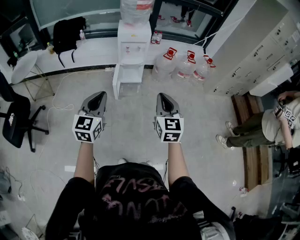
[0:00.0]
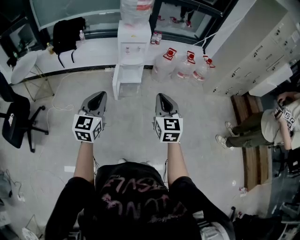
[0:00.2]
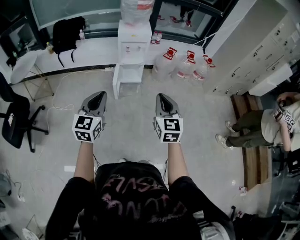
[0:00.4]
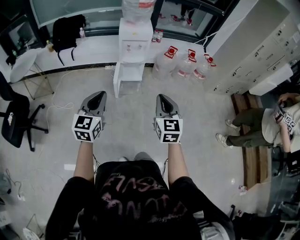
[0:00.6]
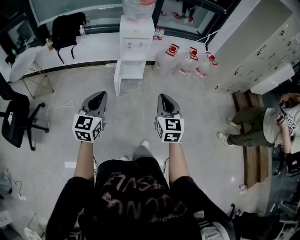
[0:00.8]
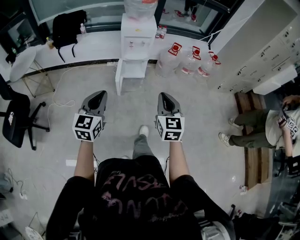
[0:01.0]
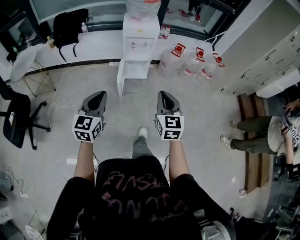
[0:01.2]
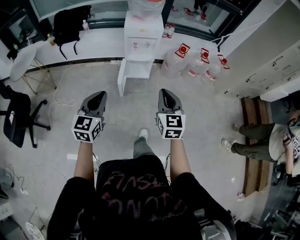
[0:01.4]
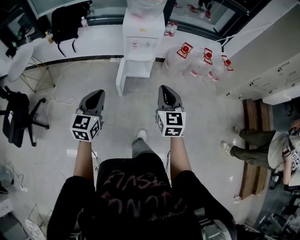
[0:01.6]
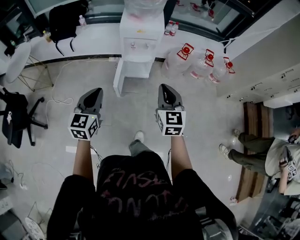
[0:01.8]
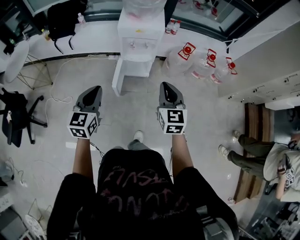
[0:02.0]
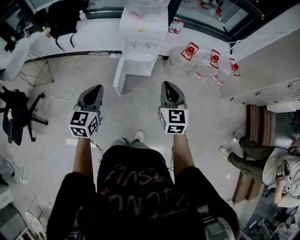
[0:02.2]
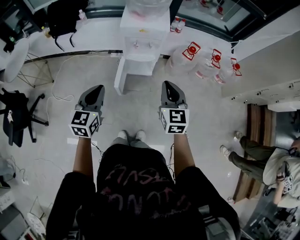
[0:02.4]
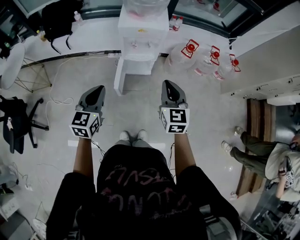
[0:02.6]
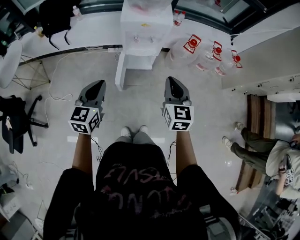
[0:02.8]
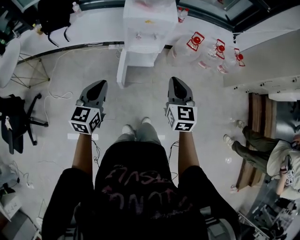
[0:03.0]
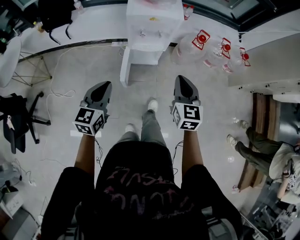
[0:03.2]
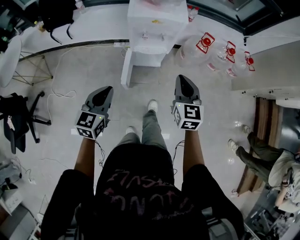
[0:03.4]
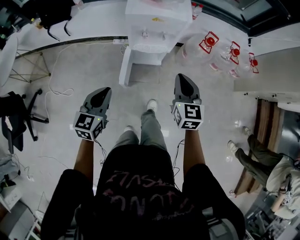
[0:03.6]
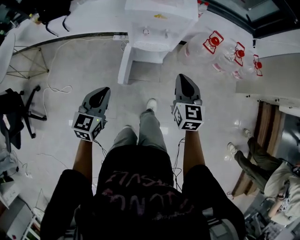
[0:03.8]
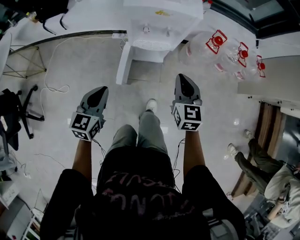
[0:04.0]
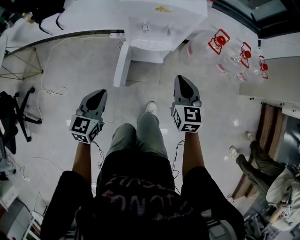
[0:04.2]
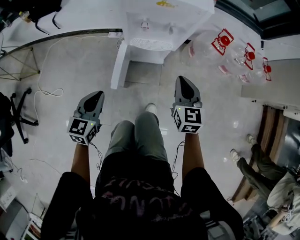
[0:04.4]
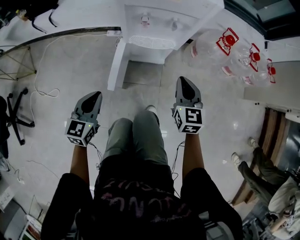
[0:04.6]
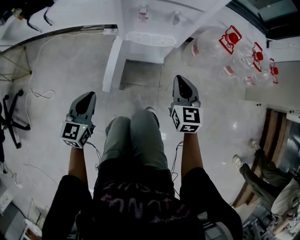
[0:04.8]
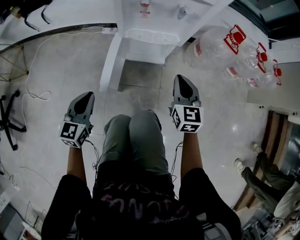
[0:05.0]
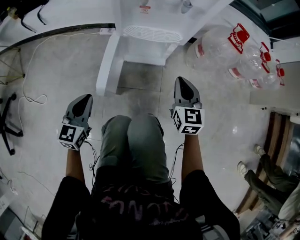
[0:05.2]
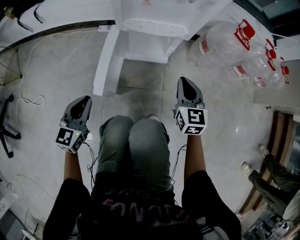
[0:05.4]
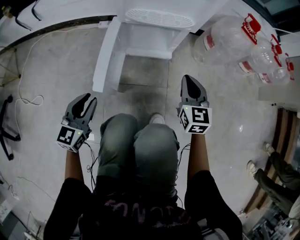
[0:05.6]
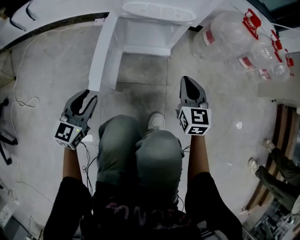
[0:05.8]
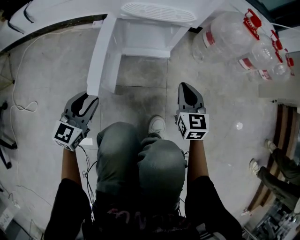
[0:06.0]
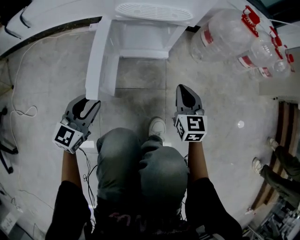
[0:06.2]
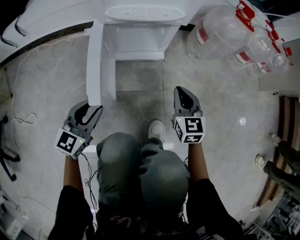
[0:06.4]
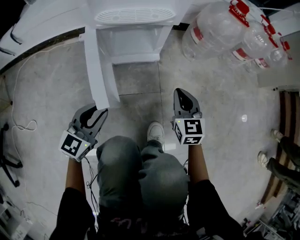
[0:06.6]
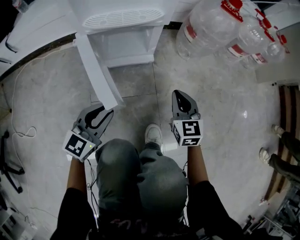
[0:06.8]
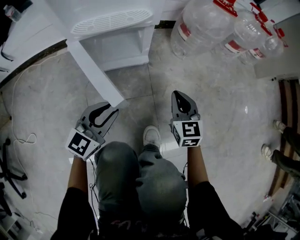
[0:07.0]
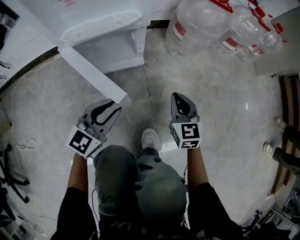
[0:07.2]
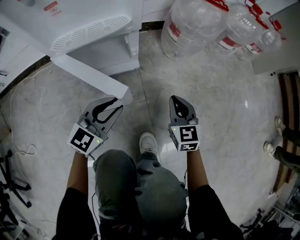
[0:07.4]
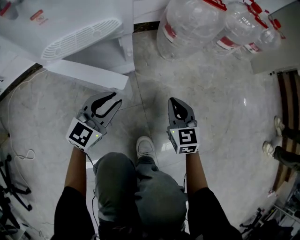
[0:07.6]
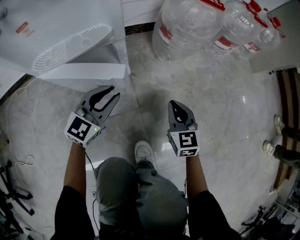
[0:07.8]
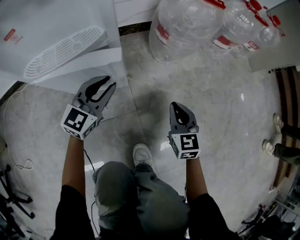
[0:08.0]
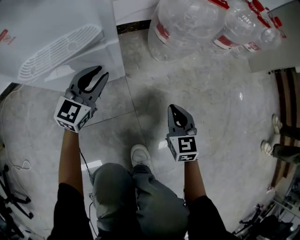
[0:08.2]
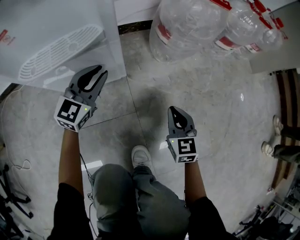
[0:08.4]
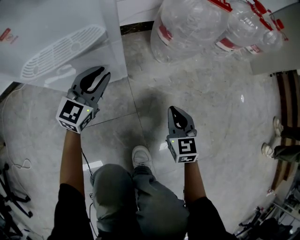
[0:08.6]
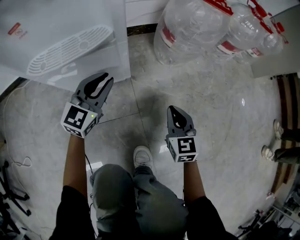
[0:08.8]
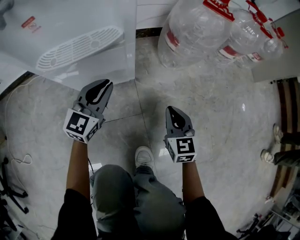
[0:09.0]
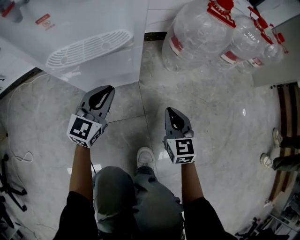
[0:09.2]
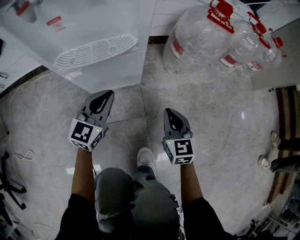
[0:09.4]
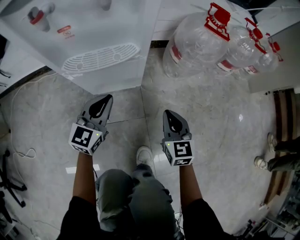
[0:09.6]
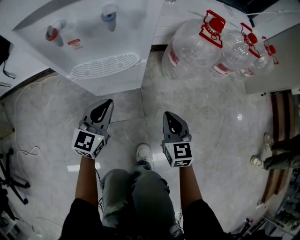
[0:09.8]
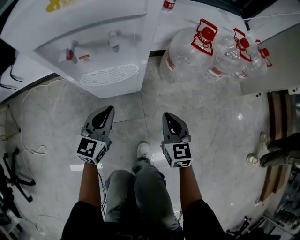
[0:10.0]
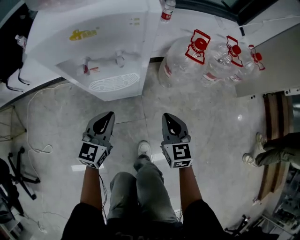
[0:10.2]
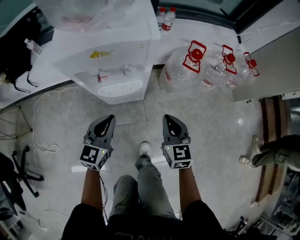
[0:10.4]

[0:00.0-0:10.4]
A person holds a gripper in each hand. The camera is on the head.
0:00.0 to 0:01.4: The left gripper is displaced forward and downward by approximately 15 cm; the right gripper is displaced forward by some 15 cm.
0:01.4 to 0:03.0: Both grippers travel together forward, some 25 cm.
0:03.0 to 0:04.4: The right gripper travels downward and forward by approximately 30 cm. Meanwhile the left gripper travels downward by roughly 30 cm.
0:04.4 to 0:06.0: Both grippers travel together downward, approximately 35 cm. The left gripper opens its fingers.
0:06.0 to 0:07.4: The right gripper heads to the right and downward, covering approximately 10 cm, while the left gripper travels to the right and forward by approximately 25 cm, and changes its angle by approximately 30 degrees.
0:07.4 to 0:09.0: The left gripper shifts about 15 cm forward.
0:09.0 to 0:10.4: Both grippers travel together upward, approximately 35 cm.

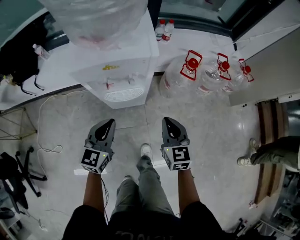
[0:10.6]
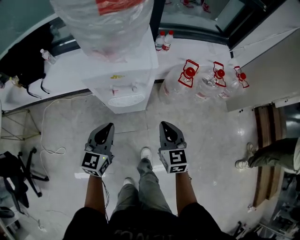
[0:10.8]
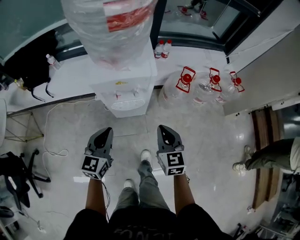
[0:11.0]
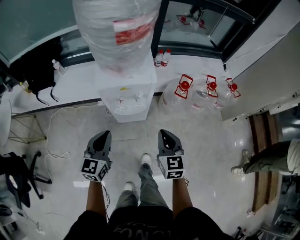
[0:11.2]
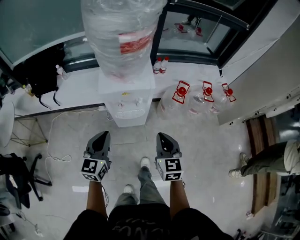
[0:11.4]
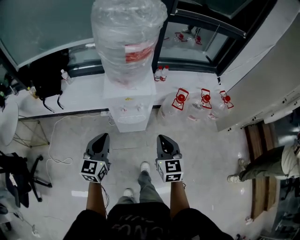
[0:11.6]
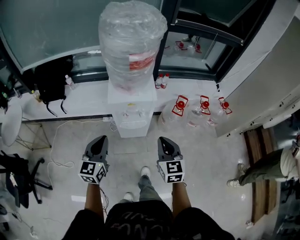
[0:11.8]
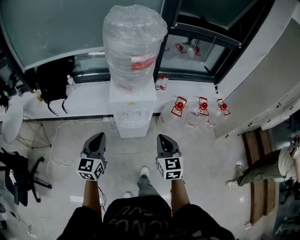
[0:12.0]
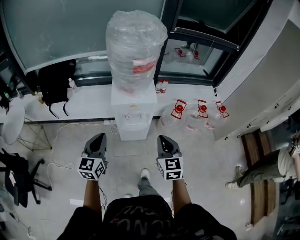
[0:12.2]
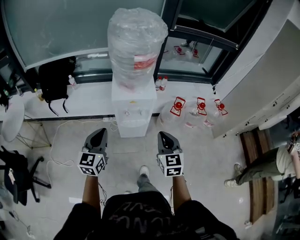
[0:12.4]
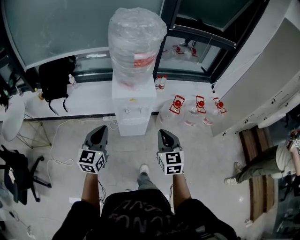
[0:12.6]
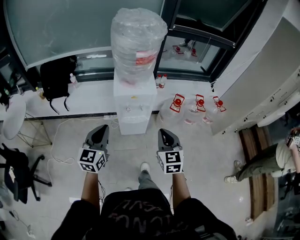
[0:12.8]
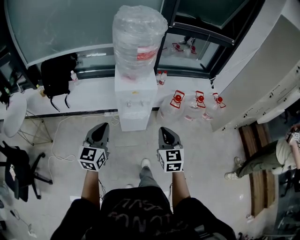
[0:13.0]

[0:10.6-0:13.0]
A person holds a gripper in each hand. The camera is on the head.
0:10.6 to 0:11.8: Both grippers travel together upward, roughly 25 cm.
0:11.8 to 0:13.0: The two grippers go roughly 10 cm backward and upward.

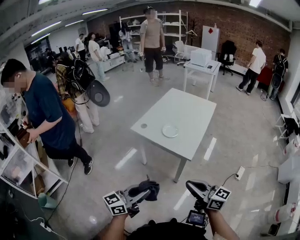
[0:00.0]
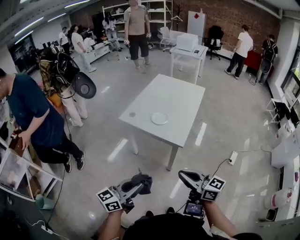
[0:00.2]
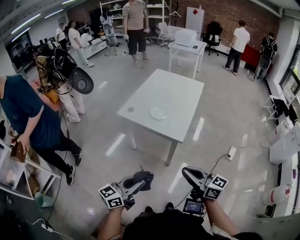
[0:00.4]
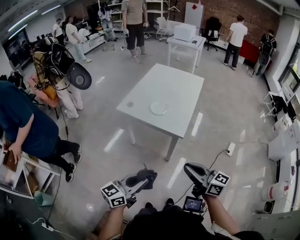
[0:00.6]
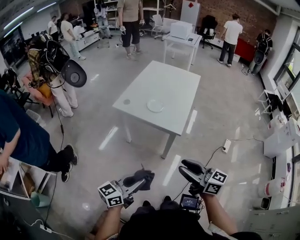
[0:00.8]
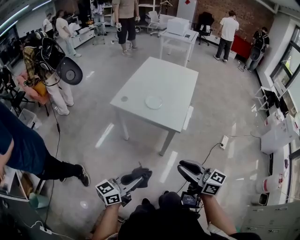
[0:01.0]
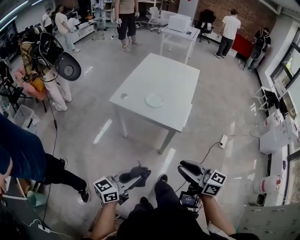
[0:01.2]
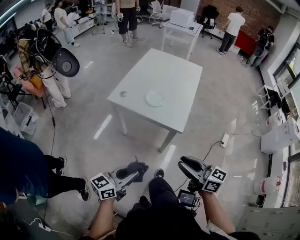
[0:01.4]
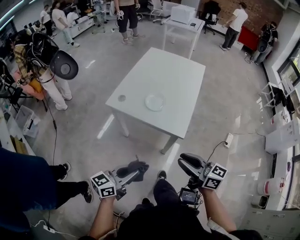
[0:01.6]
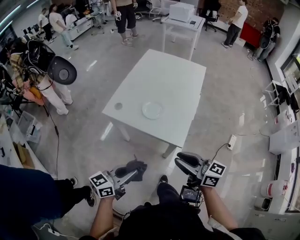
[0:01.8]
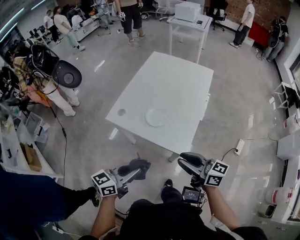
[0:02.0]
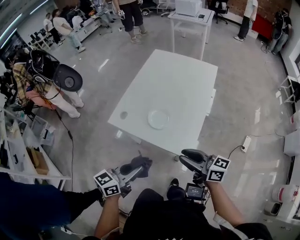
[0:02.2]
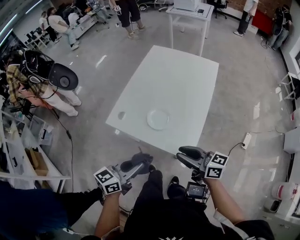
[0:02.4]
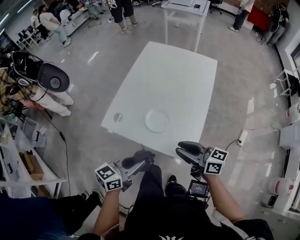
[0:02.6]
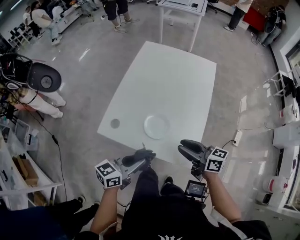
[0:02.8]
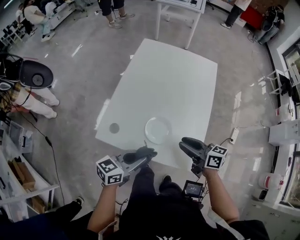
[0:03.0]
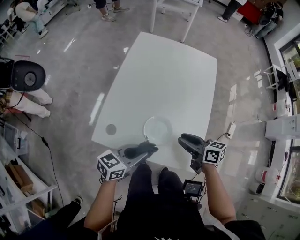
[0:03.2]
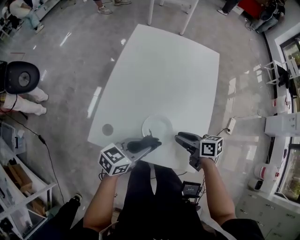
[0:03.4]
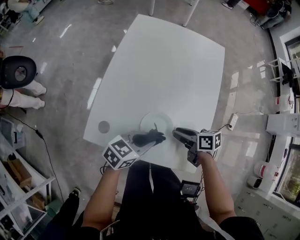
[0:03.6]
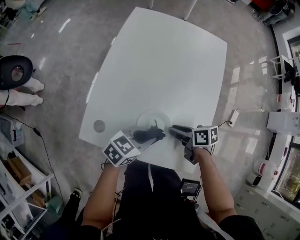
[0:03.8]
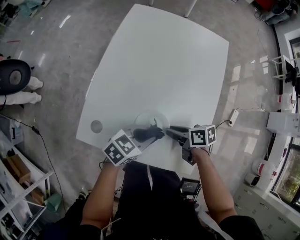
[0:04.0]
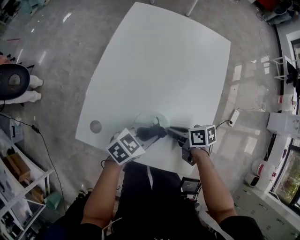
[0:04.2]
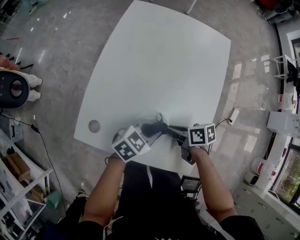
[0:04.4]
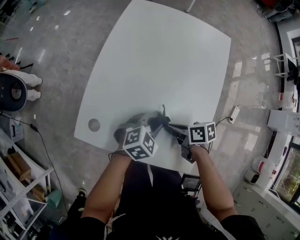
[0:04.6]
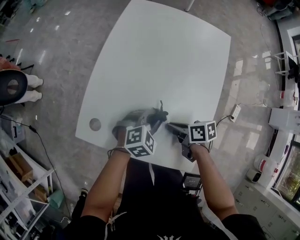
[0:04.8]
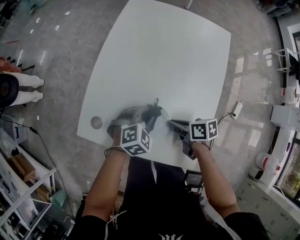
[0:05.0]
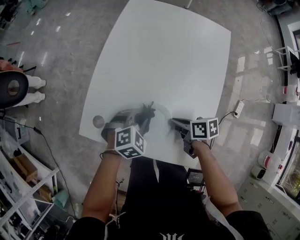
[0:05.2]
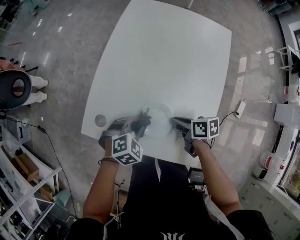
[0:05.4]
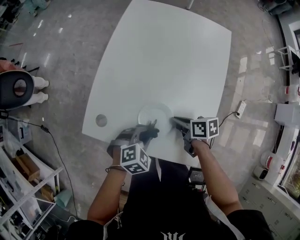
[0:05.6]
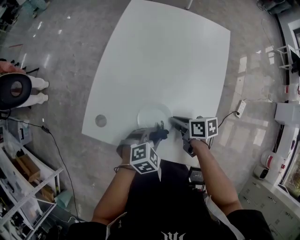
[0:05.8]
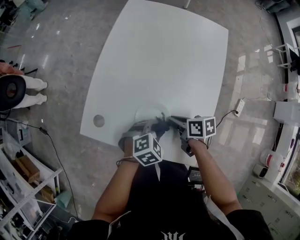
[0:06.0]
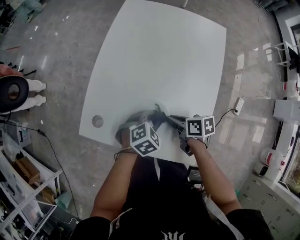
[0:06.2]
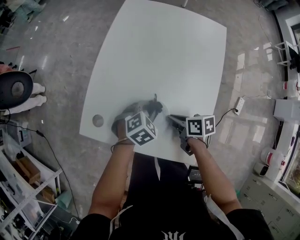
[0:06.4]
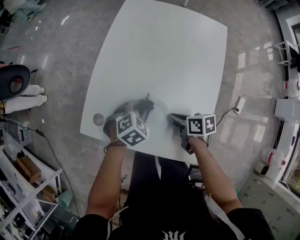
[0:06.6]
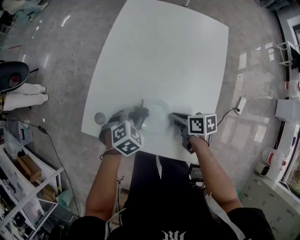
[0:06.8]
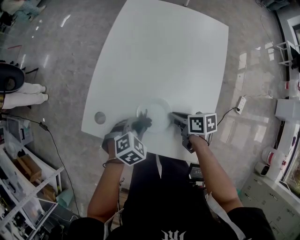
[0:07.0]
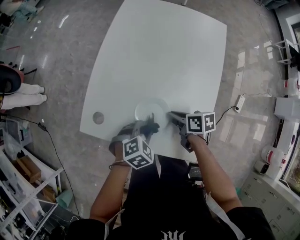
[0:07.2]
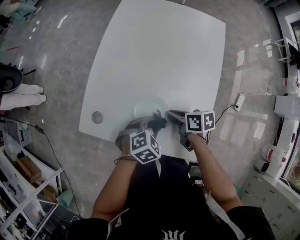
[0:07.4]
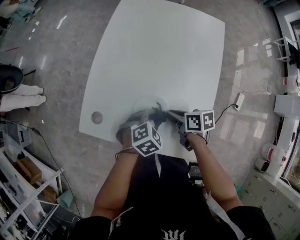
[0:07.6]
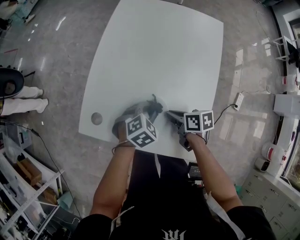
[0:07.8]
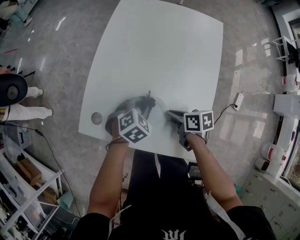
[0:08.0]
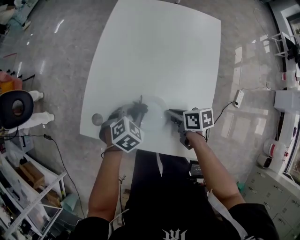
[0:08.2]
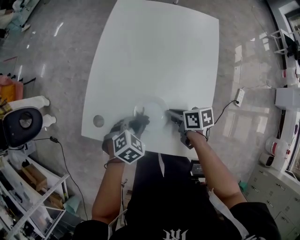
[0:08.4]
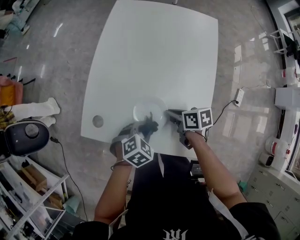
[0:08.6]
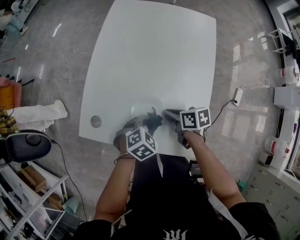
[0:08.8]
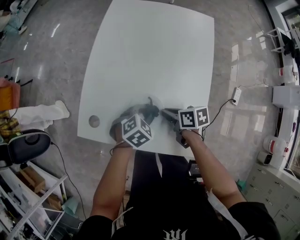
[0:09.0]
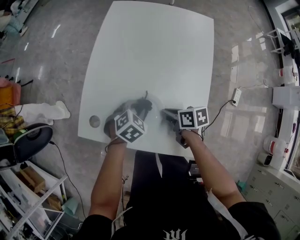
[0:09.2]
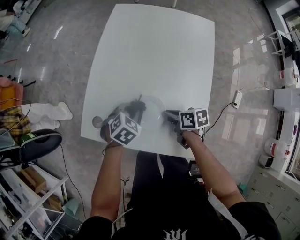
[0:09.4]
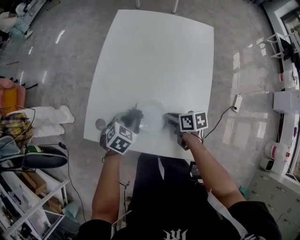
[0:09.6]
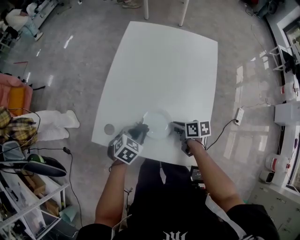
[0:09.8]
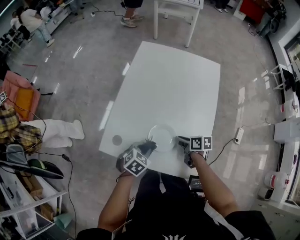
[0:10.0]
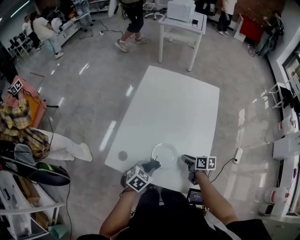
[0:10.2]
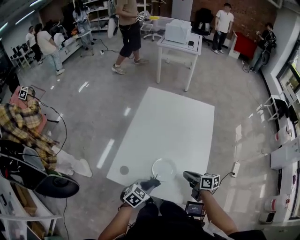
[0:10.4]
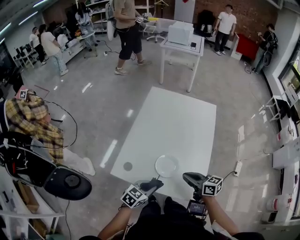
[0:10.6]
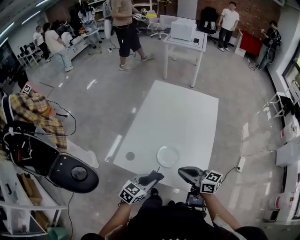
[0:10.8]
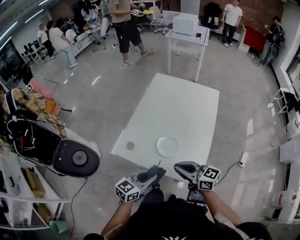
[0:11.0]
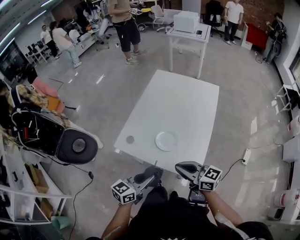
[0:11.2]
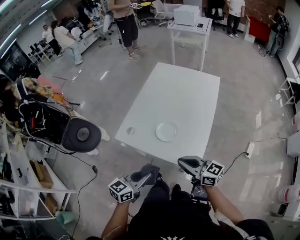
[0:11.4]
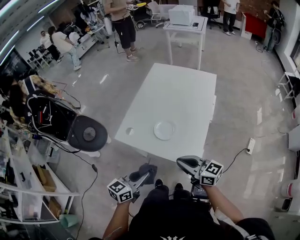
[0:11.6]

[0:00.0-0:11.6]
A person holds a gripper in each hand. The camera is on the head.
0:00.0 to 0:01.4: The left gripper moves downward, forward and to the left, some 15 cm. The right gripper is displaced forward, downward and to the left by about 10 cm.
0:01.4 to 0:02.8: The two grippers travel together, forward, approximately 40 cm.
0:02.8 to 0:04.4: The right gripper goes about 20 cm downward, angles its fingers downward, by roughly 30 degrees, and closes its fingers. The left gripper ends up about 25 cm from where it was, and rotates approximately 30 degrees.
0:04.4 to 0:05.8: The left gripper ends up about 5 cm from where it was, and turns by approximately 30 degrees.
0:07.2 to 0:08.8: The left gripper reaches approximately 10 cm forward, then returns.
0:08.8 to 0:10.2: The left gripper shifts roughly 10 cm to the left and upward, and travels forward and back again, some 5 cm each way.
0:10.2 to 0:11.6: Both grippers move backward and upward, some 30 cm. The left gripper angles its fingers upward, by roughly 40 degrees, while the right gripper tips its fingers upward by some 40 degrees.
